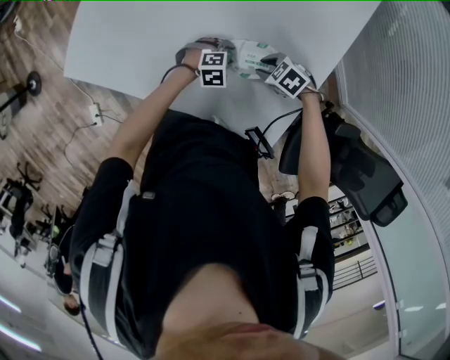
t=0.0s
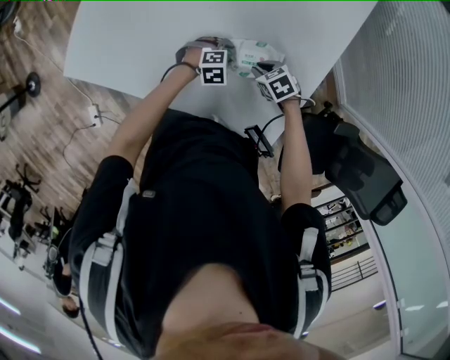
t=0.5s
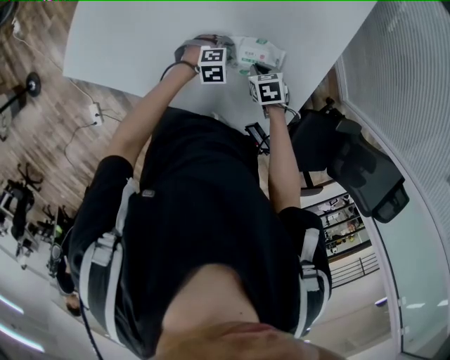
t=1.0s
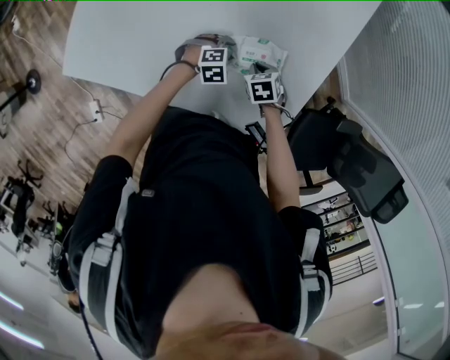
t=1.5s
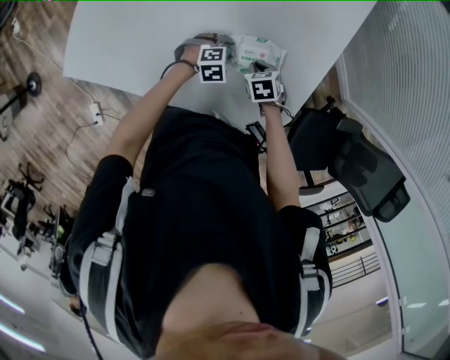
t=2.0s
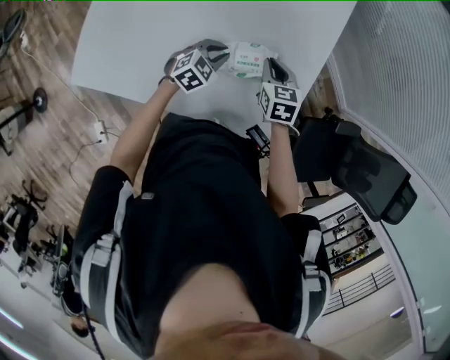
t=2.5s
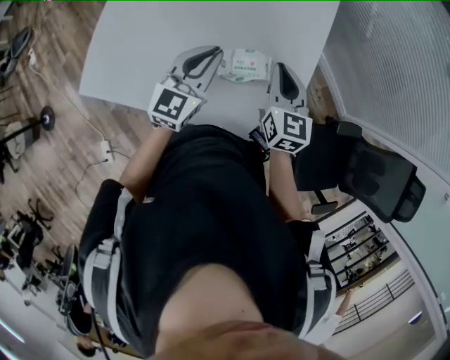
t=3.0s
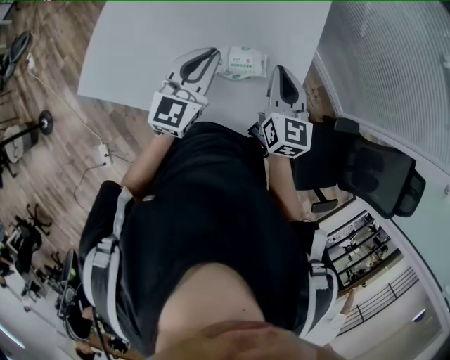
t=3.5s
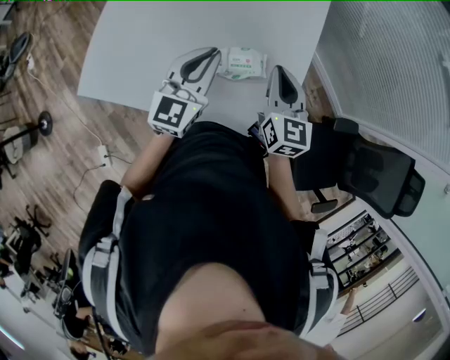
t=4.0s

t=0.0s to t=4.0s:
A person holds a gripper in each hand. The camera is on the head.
t=0.0s to t=2.0s: The right gripper swivels some 50 degrees, and closes.
t=2.0s to t=4.0s: Both grippers travel together upward, about 35 cm. The right gripper angles its fingers upward, by approximately 60 degrees, while the left gripper tilts its fingers approximately 60 degrees upward, and closes.

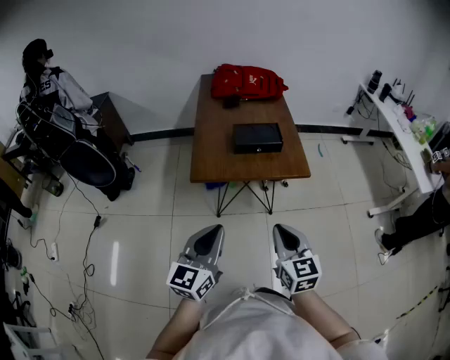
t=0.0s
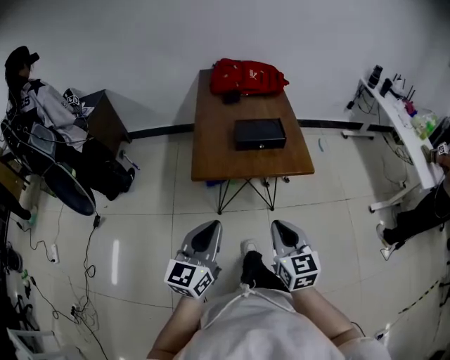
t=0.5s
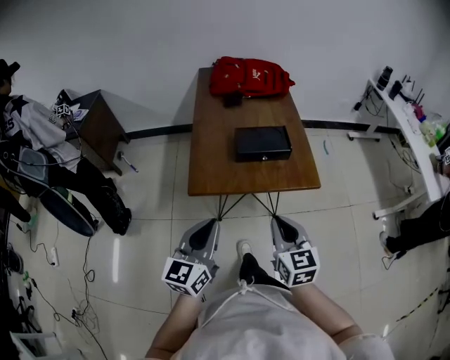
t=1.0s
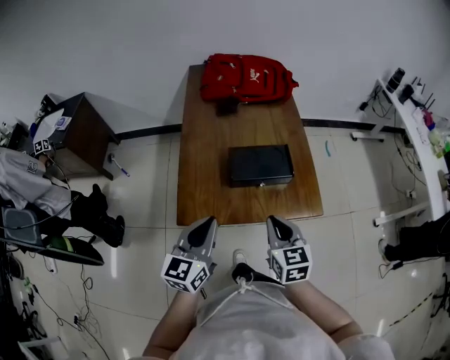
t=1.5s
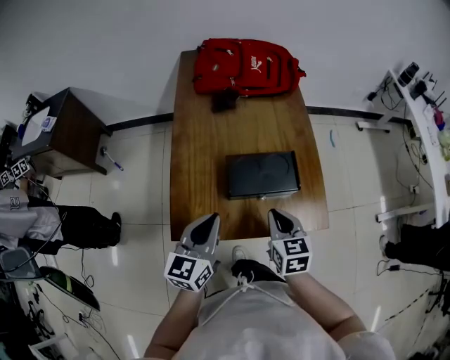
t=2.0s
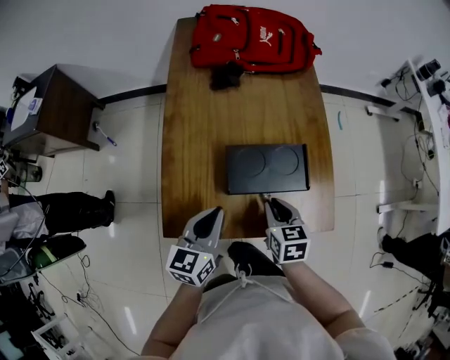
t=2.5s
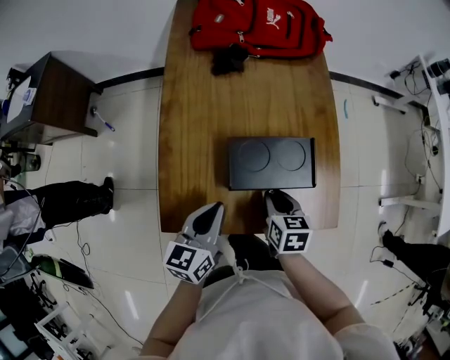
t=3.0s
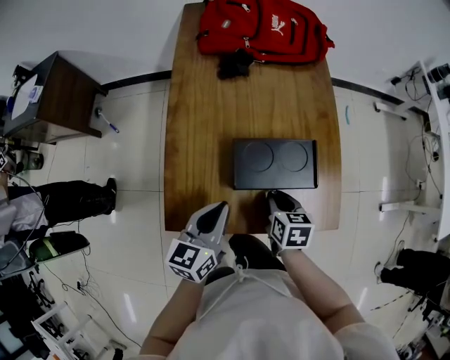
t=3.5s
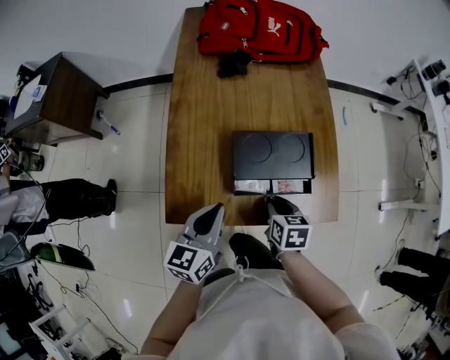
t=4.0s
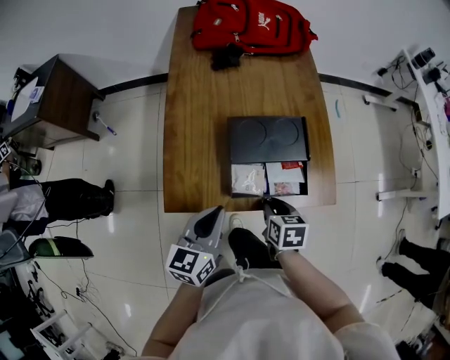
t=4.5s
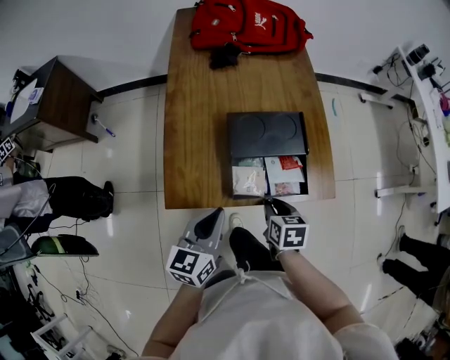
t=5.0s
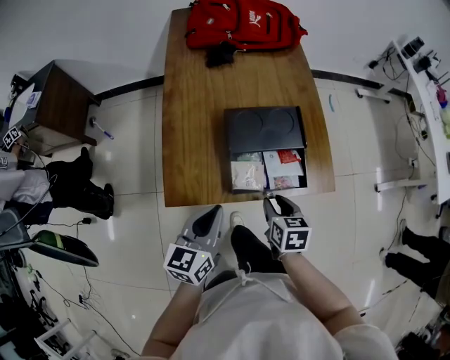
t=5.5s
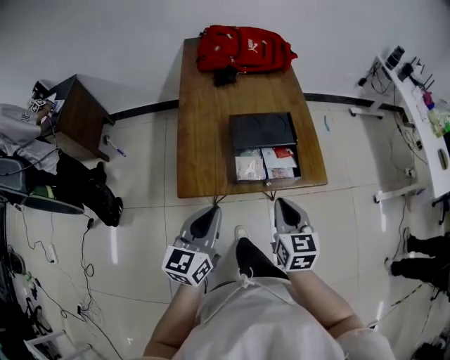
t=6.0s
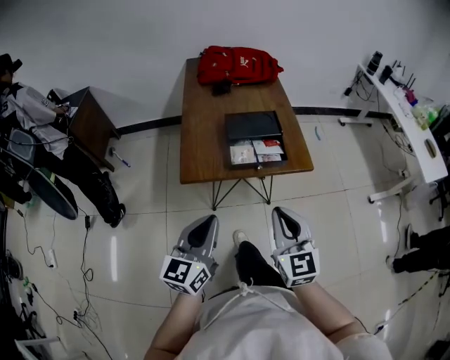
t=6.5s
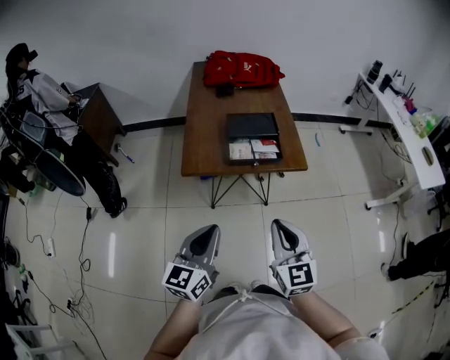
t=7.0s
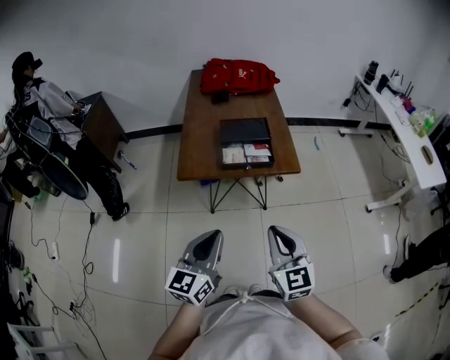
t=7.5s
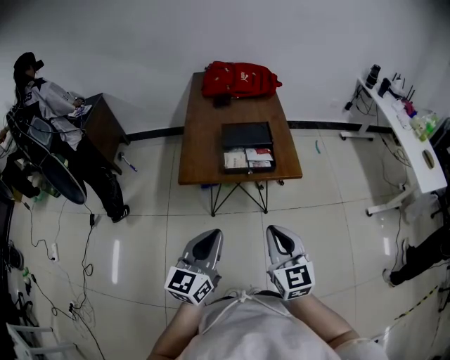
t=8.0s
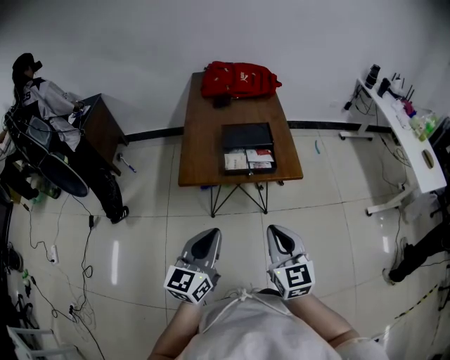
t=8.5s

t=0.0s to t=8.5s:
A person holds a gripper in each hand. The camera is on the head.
t=0.0s to t=2.0s: Both grippers are carried forward, about 40 cm.
t=2.0s to t=4.0s: The left gripper travels downward by some 5 cm, while the right gripper goes about 10 cm downward, and rotates roughly 20 degrees.
t=4.0s to t=6.5s: Both grippers travel together backward and upward, approximately 35 cm. The right gripper angles its fingers upward, by about 40 degrees.
t=6.5s to t=8.5s: The right gripper travels backward by some 5 cm, while the left gripper moves backward and to the right, some 10 cm.

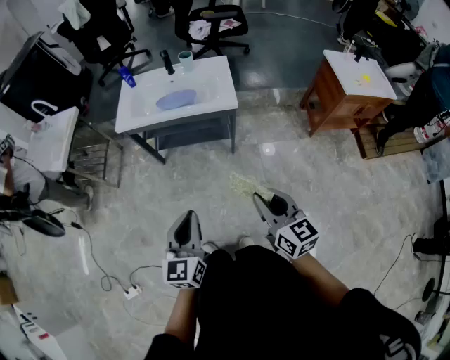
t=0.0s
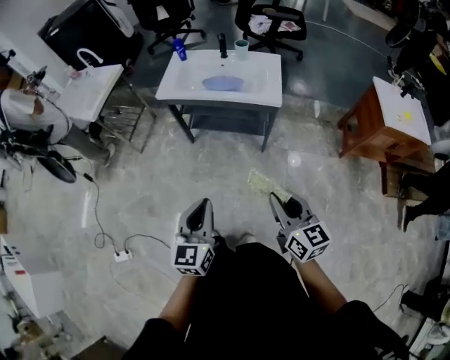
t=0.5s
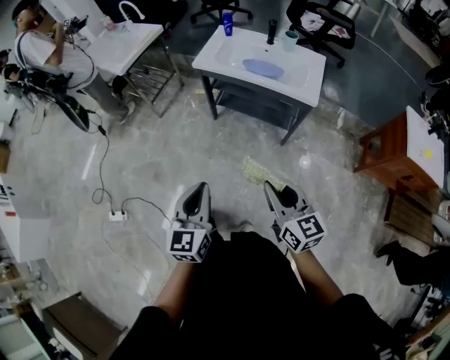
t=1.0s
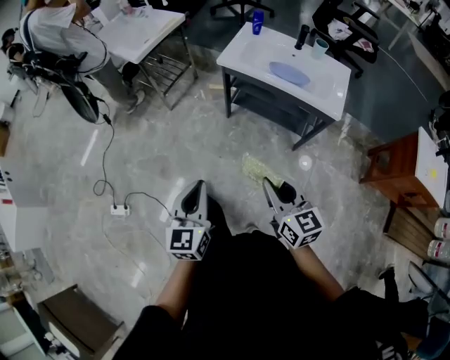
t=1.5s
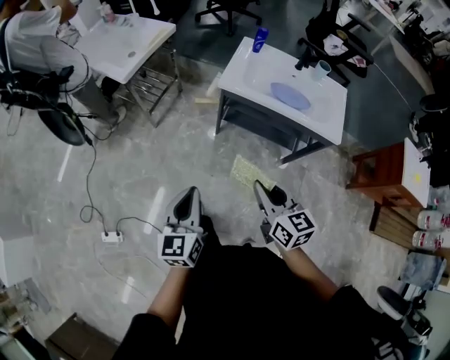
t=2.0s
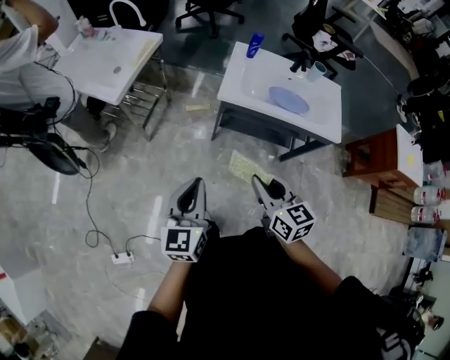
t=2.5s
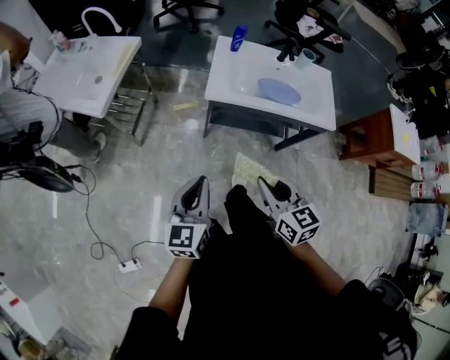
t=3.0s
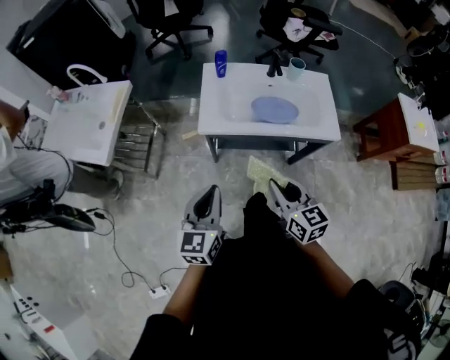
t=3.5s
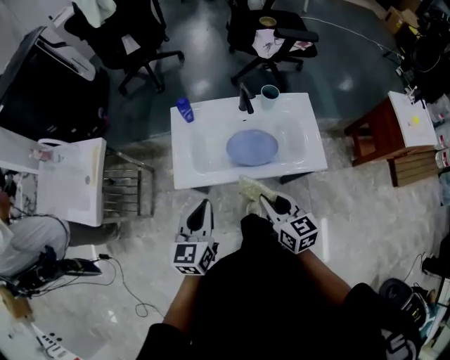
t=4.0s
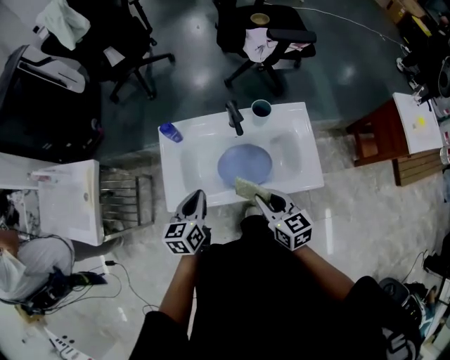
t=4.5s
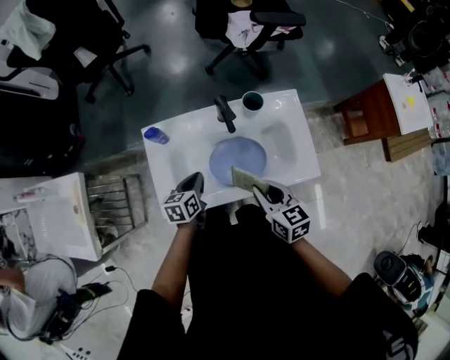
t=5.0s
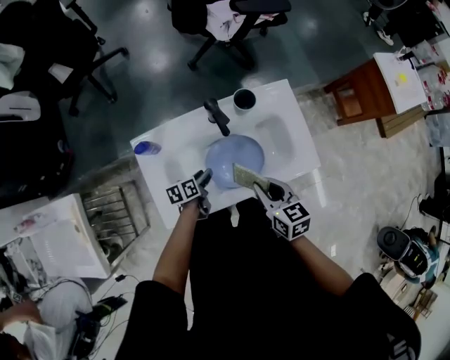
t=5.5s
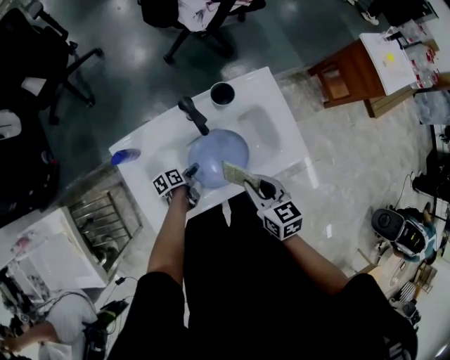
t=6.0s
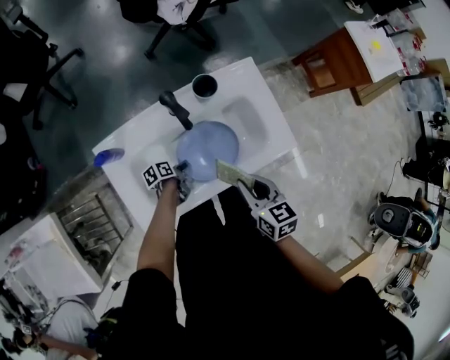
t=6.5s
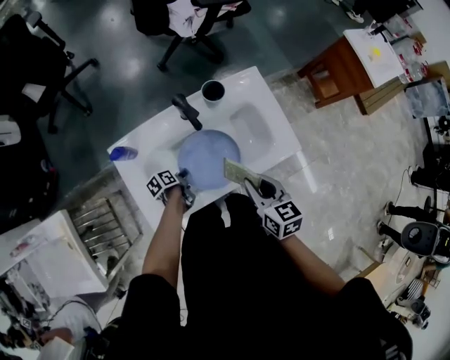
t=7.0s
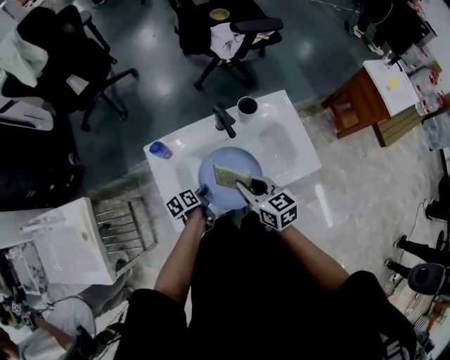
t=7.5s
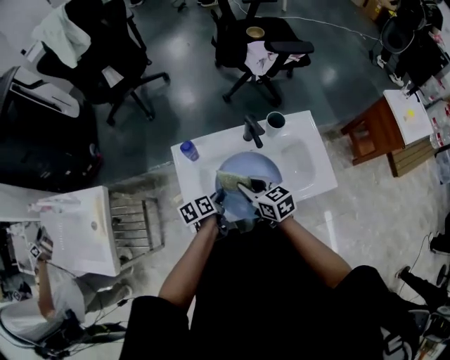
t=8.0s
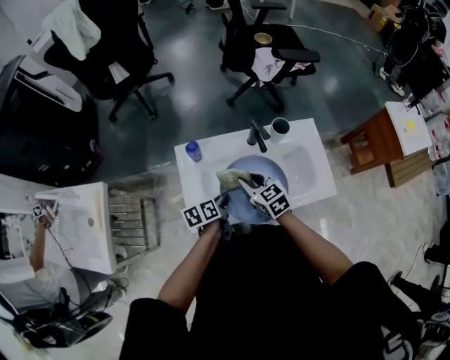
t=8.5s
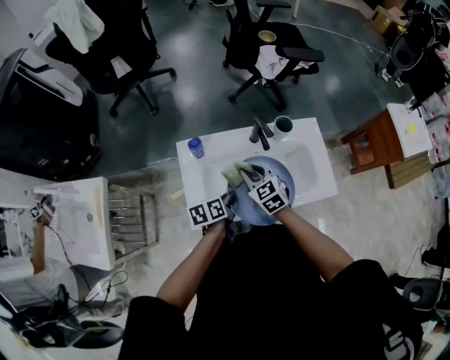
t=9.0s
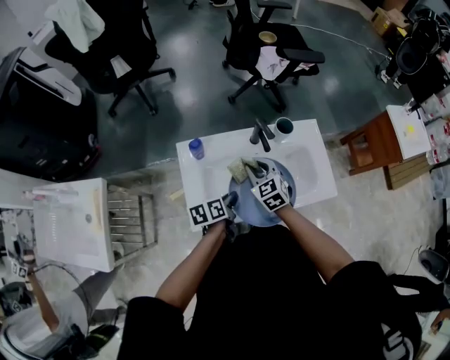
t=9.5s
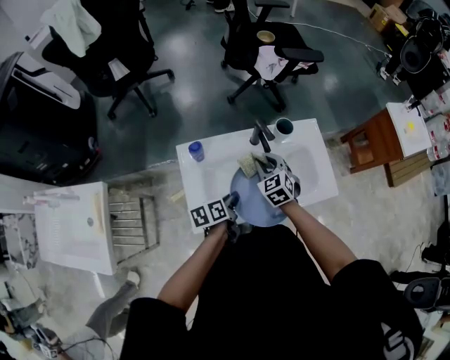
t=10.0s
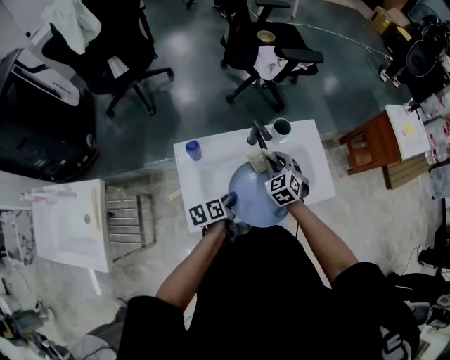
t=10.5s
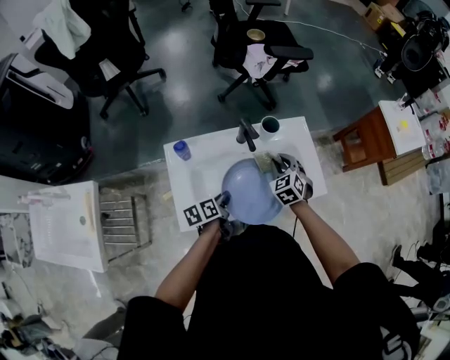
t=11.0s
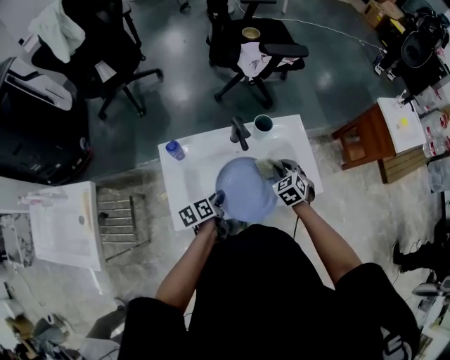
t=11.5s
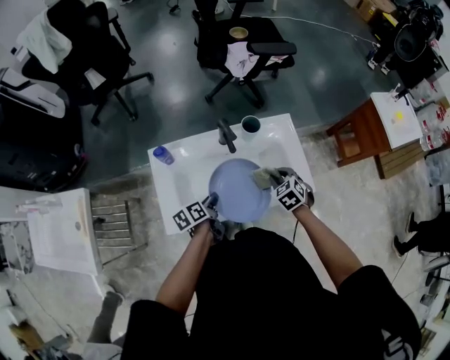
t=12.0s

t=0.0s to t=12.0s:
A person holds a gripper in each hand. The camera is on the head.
t=0.0s to t=2.0s: The right gripper ends up about 40 cm from where it was, and swivels approximately 20 degrees, while the left gripper moves some 35 cm, and rotates about 20 degrees.
t=2.0s to t=4.0s: The grippers both shift forward and to the right by about 35 cm. The left gripper rotates roughly 30 degrees. Meanwhile the right gripper changes its angle by some 20 degrees.
t=4.0s to t=6.0s: The right gripper changes place by about 20 cm, and turns by some 20 degrees; the left gripper is displaced downward by approximately 35 cm, rotates about 70 degrees, and opens up.
t=6.0s to t=8.0s: The left gripper is displaced upward by about 20 cm, and closes up. The right gripper ends up some 20 cm from where it was, and turns by roughly 20 degrees.
t=8.0s to t=10.0s: The right gripper moves forward, about 10 cm, and rotates about 40 degrees.
t=10.0s to t=12.0s: The right gripper moves to the right, some 20 cm, while the left gripper moves approximately 5 cm.

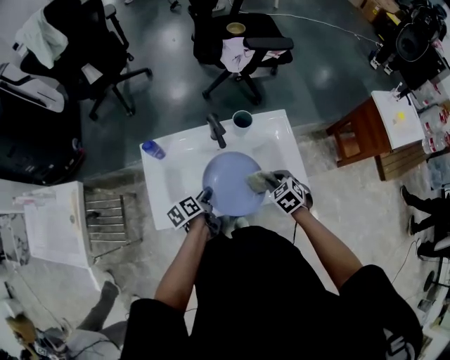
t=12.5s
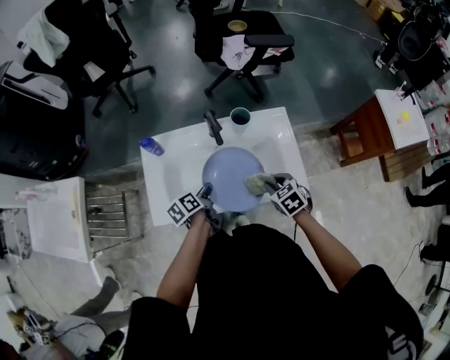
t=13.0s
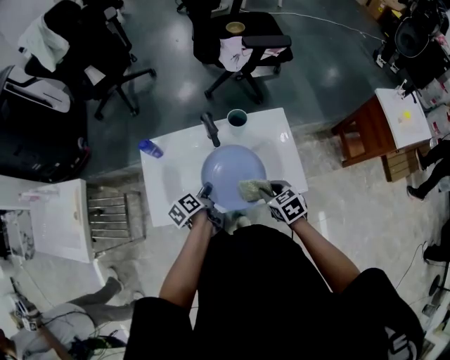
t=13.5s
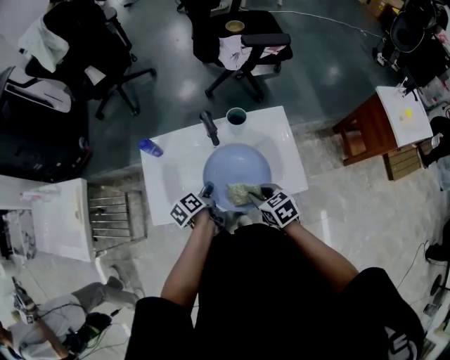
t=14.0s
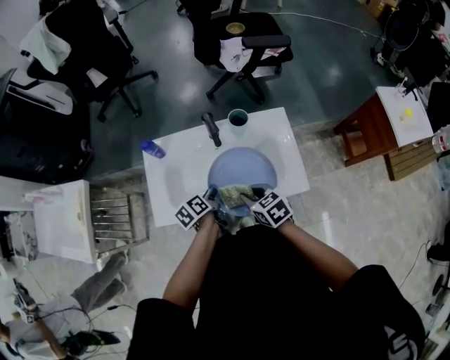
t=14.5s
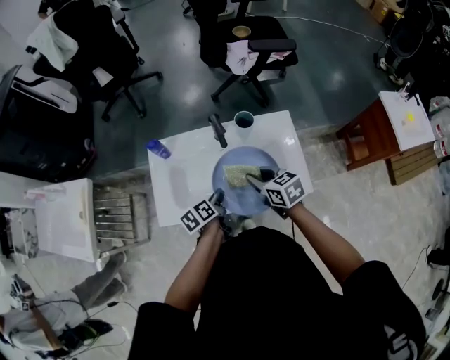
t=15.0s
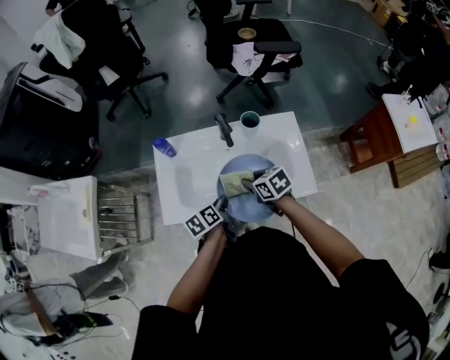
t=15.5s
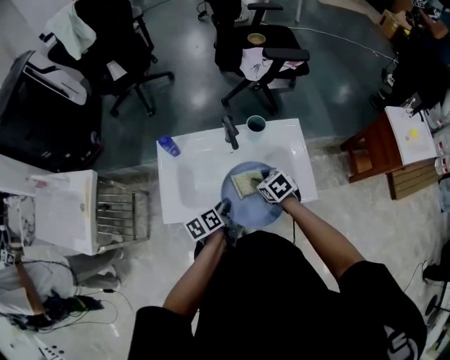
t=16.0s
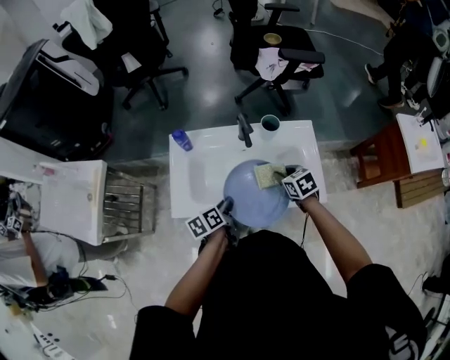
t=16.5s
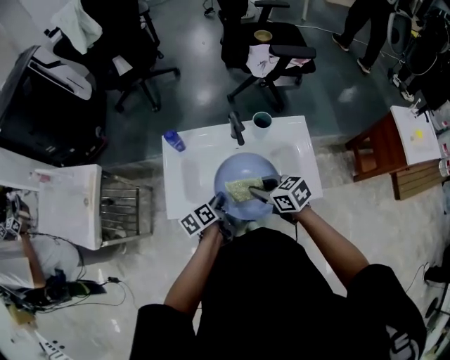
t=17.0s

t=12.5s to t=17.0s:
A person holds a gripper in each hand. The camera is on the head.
t=12.5s to t=14.5s: The right gripper travels to the left by roughly 10 cm, and changes its angle by roughly 30 degrees.
t=14.5s to t=17.0s: The left gripper is displaced to the left by roughly 5 cm.
